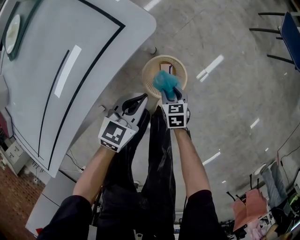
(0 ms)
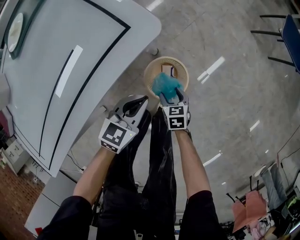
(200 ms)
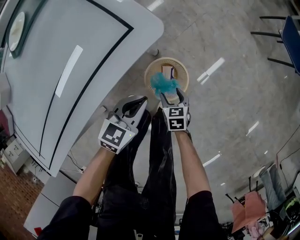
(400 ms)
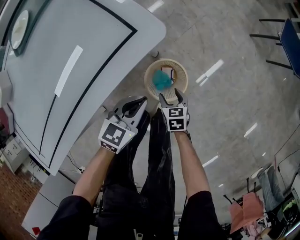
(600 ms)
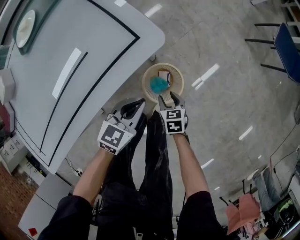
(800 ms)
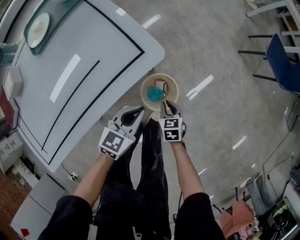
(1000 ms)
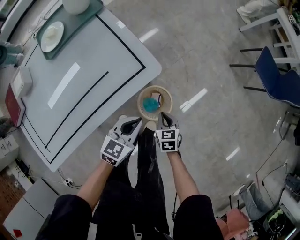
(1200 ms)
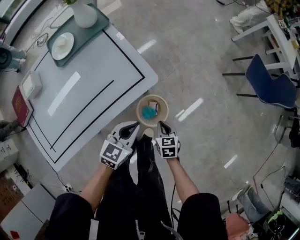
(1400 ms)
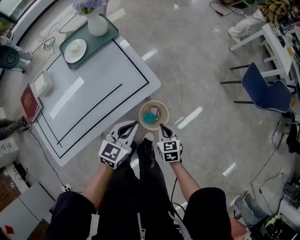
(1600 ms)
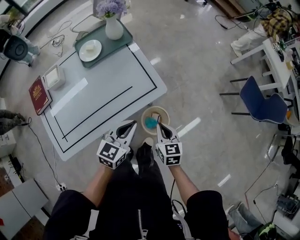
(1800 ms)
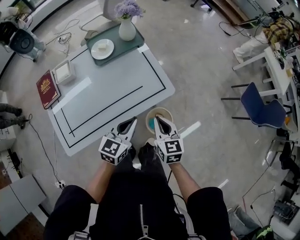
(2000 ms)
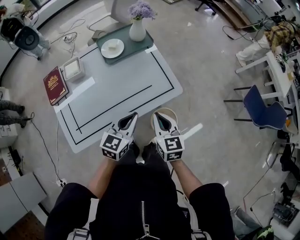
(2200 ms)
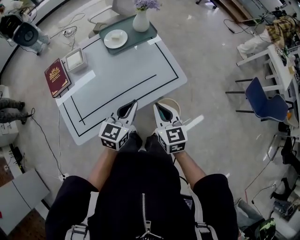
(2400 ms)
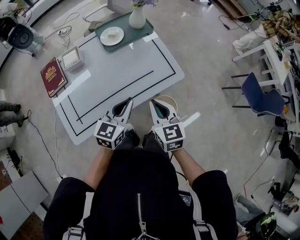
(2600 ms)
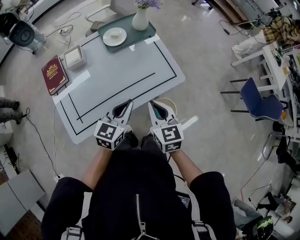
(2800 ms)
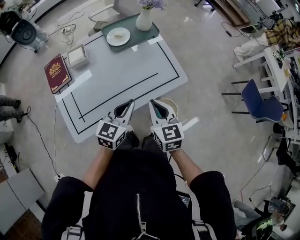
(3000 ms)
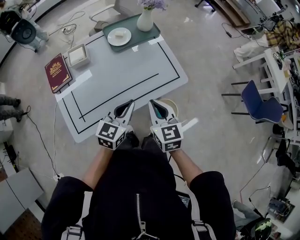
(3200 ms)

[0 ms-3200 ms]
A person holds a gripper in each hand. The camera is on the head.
0 ms to 1600 ms: Both grippers move upward, about 30 cm. The right gripper closes.
1600 ms to 3200 ms: The right gripper travels upward and to the left by about 35 cm, and rotates approximately 30 degrees, while the left gripper heads to the left and upward, covering roughly 20 cm.

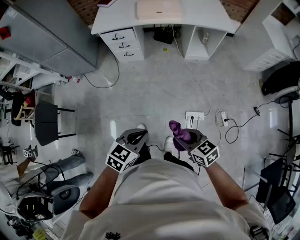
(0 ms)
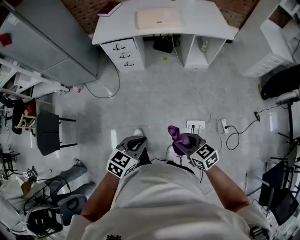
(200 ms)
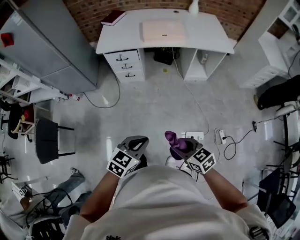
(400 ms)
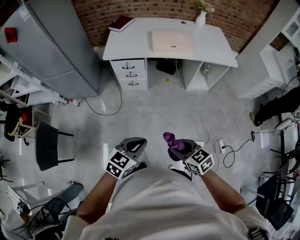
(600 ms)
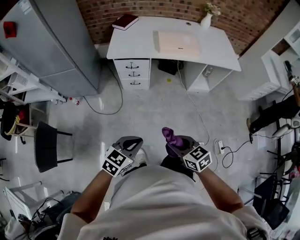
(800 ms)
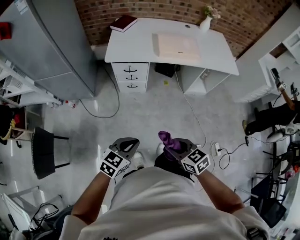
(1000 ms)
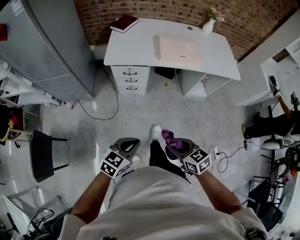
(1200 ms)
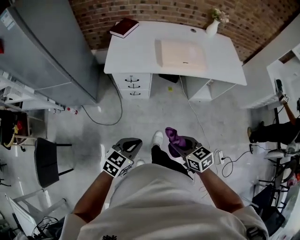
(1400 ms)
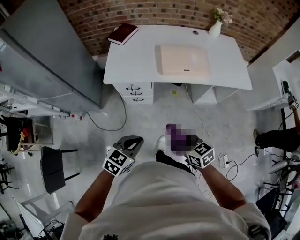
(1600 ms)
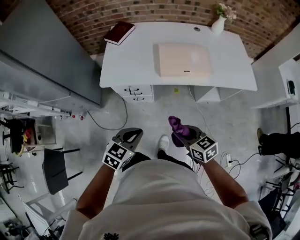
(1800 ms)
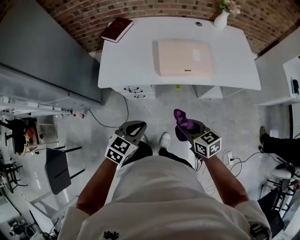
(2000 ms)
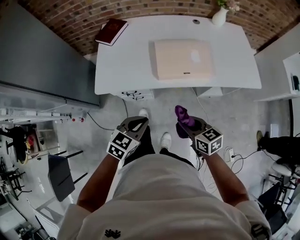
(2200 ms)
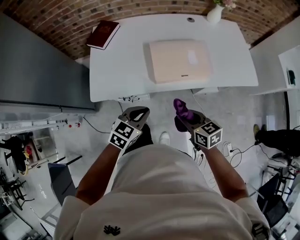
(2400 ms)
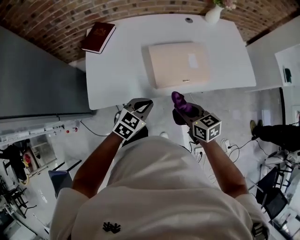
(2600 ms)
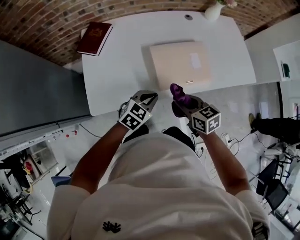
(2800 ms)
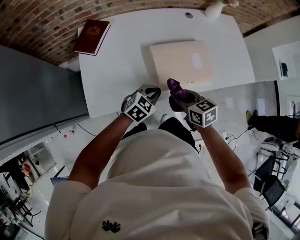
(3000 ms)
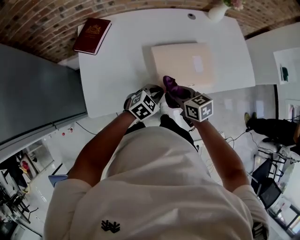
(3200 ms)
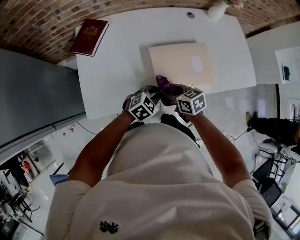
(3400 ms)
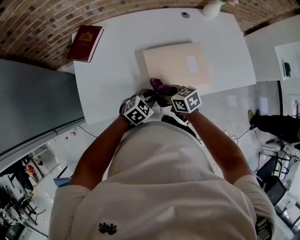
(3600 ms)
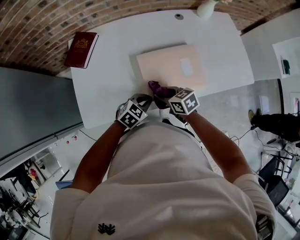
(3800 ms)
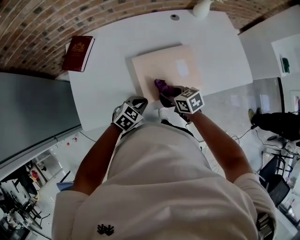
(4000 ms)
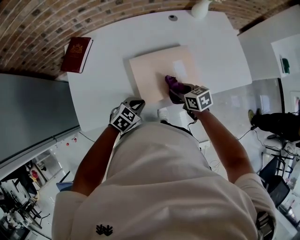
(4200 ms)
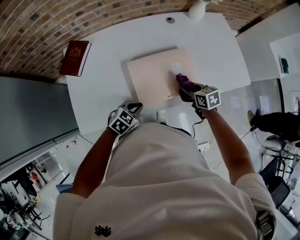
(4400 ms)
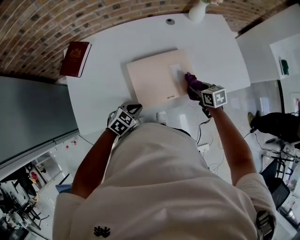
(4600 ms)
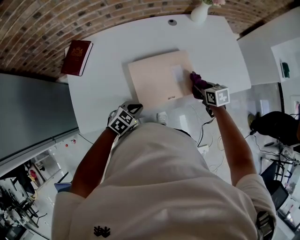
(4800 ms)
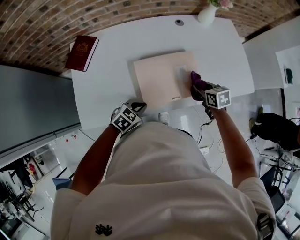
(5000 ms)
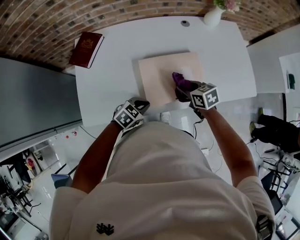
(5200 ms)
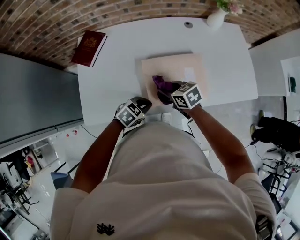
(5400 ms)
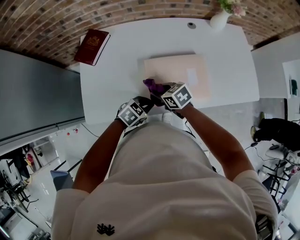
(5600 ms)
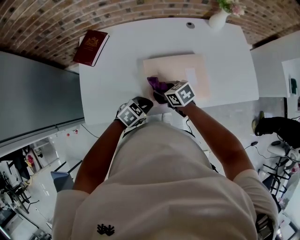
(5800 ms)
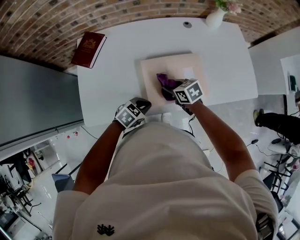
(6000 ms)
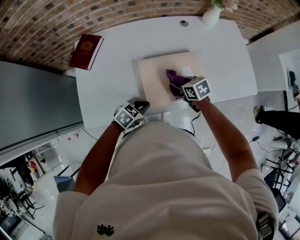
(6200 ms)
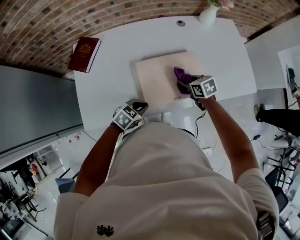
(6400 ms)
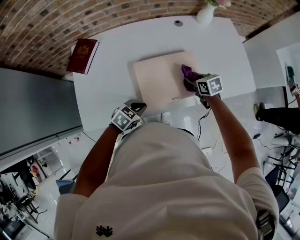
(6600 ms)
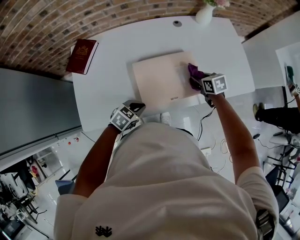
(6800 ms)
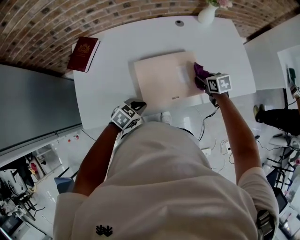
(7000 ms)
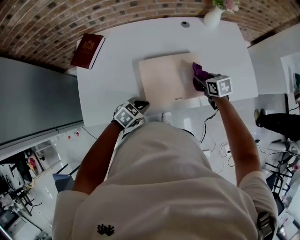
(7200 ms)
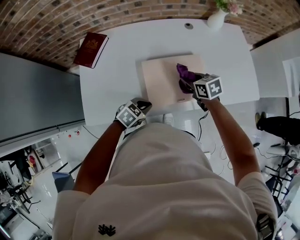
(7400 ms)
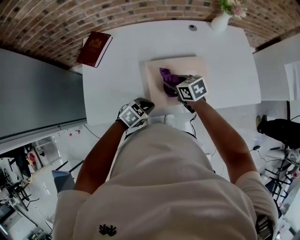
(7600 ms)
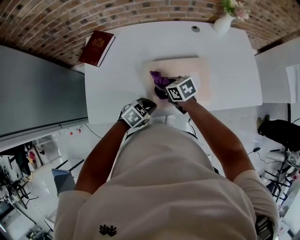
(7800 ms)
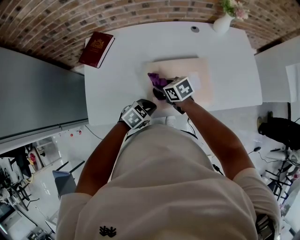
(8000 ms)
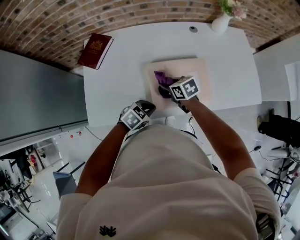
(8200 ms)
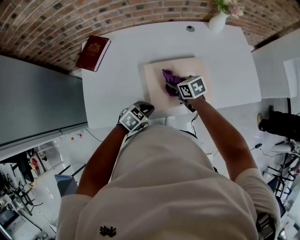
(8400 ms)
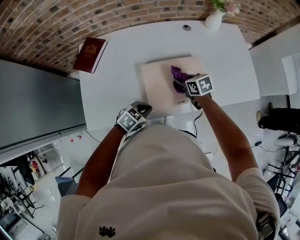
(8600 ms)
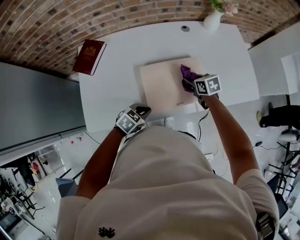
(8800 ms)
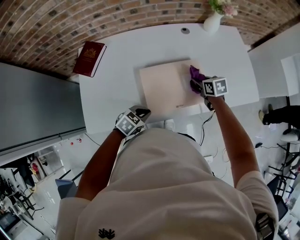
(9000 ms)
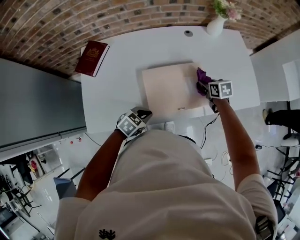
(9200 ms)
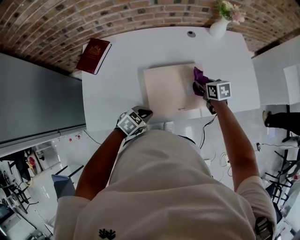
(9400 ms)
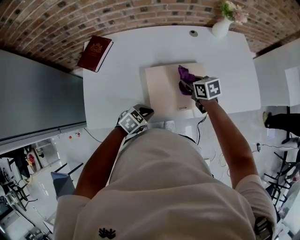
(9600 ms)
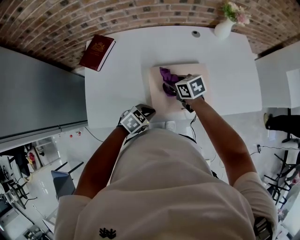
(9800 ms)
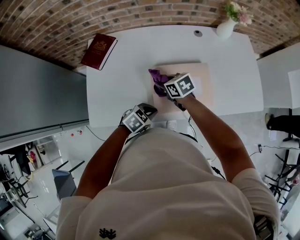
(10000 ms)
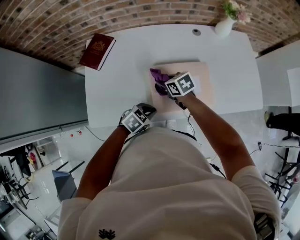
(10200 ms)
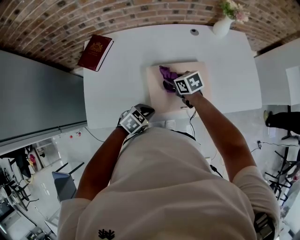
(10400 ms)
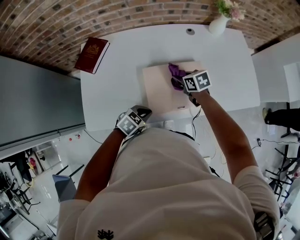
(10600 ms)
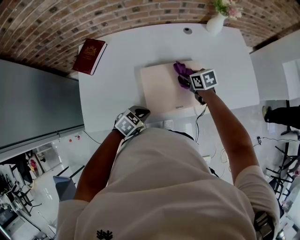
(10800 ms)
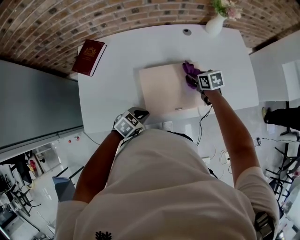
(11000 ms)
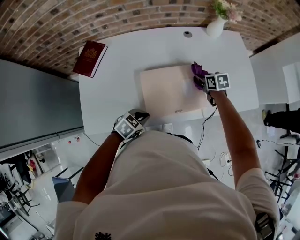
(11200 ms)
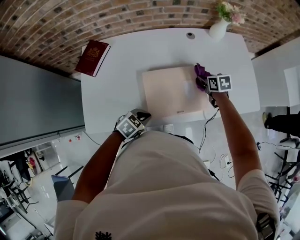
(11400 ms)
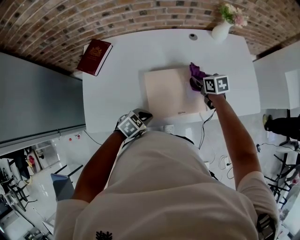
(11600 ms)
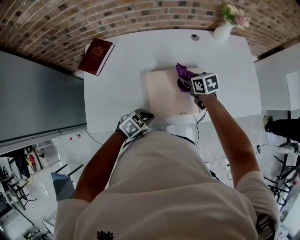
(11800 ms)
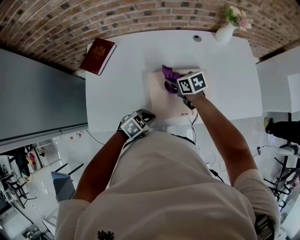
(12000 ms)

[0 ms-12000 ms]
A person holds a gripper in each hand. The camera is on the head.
0 ms to 1600 ms: The two grippers travel together, forward and to the left, roughly 50 cm.
1600 ms to 3000 ms: The two grippers travel together, forward, some 50 cm. The left gripper changes its angle by approximately 20 degrees.
3000 ms to 4400 ms: The right gripper is displaced to the right and forward by some 25 cm, while the left gripper ends up roughly 5 cm from where it was.
4400 ms to 6000 ms: The right gripper ends up about 15 cm from where it was.
7600 ms to 9000 ms: The right gripper shifts by about 20 cm.
9000 ms to 10400 ms: The right gripper shifts by roughly 20 cm.

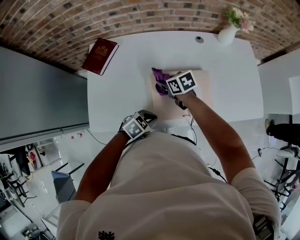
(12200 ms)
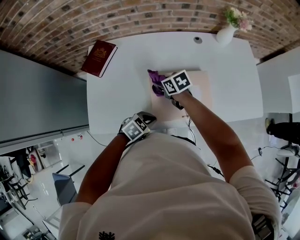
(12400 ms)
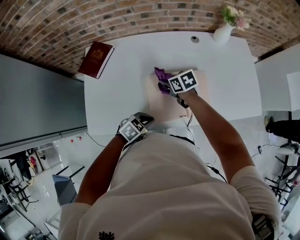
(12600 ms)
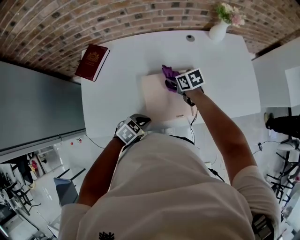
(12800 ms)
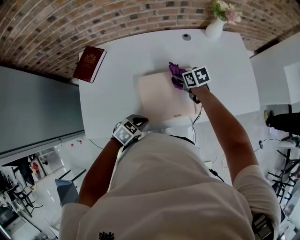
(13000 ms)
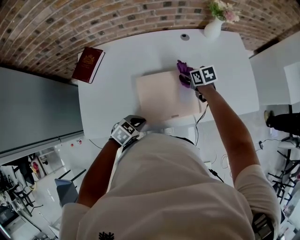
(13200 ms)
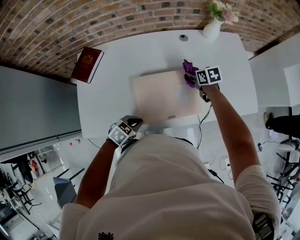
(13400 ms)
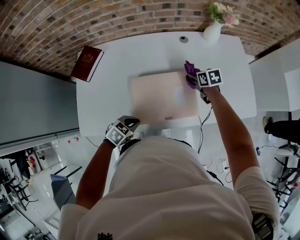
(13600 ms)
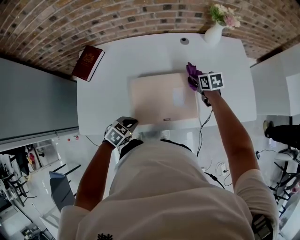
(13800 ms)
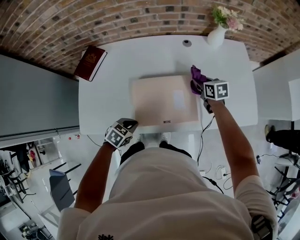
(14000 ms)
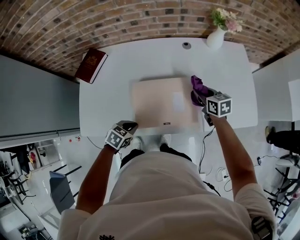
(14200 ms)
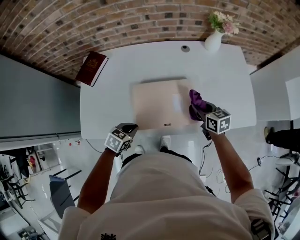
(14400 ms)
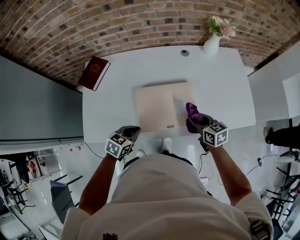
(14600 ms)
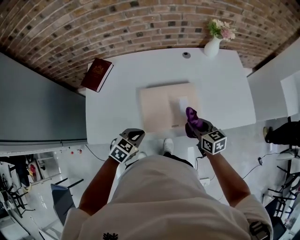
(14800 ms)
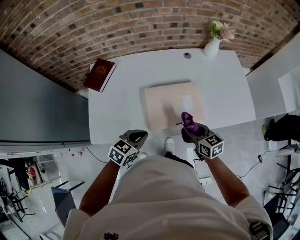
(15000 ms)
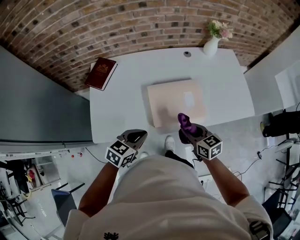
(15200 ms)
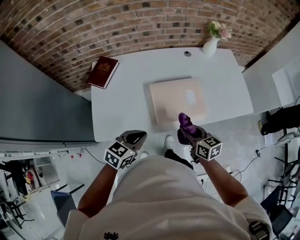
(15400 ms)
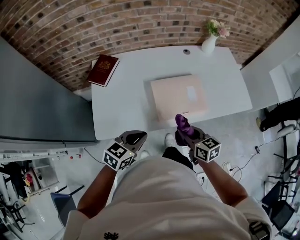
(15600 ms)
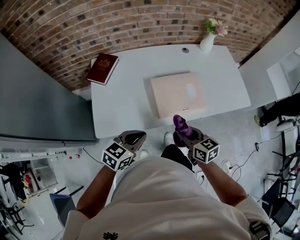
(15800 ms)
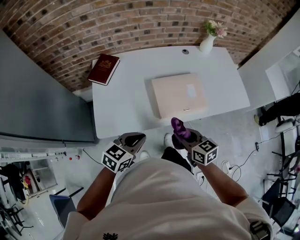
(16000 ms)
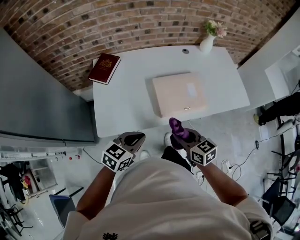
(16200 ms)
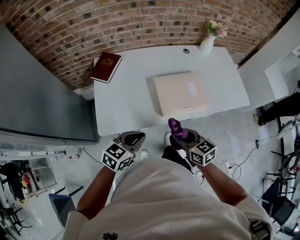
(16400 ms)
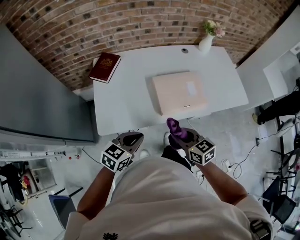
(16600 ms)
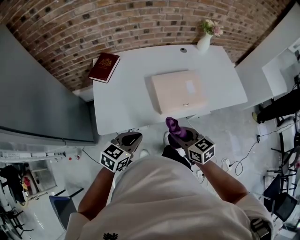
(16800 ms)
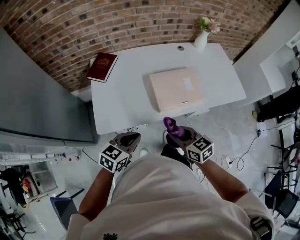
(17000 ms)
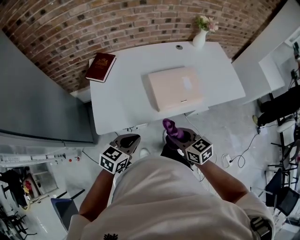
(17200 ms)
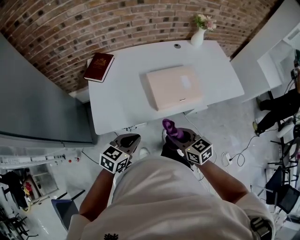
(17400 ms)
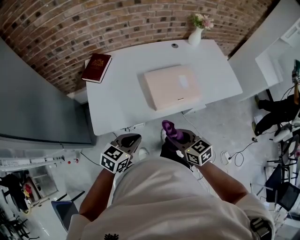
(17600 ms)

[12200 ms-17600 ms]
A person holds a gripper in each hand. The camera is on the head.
12200 ms to 13600 ms: The right gripper moves approximately 30 cm.
13600 ms to 15000 ms: The left gripper is displaced upward by roughly 10 cm. The right gripper shifts some 30 cm backward, and rotates approximately 20 degrees.
15000 ms to 16200 ms: The left gripper is displaced backward, to the left and upward by roughly 15 cm; the right gripper goes approximately 20 cm backward and to the left.
16200 ms to 17600 ms: The left gripper ends up roughly 5 cm from where it was. The right gripper heads backward, covering approximately 5 cm.

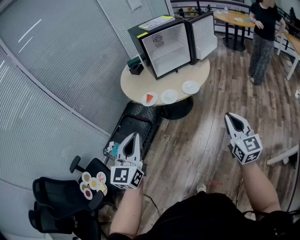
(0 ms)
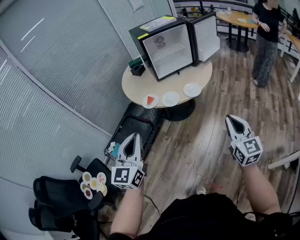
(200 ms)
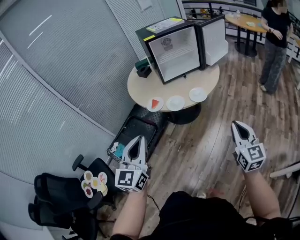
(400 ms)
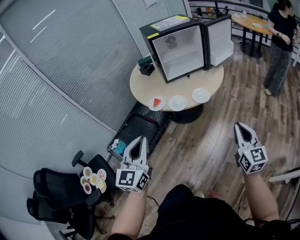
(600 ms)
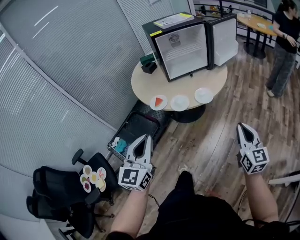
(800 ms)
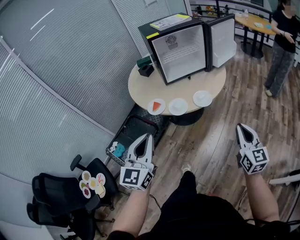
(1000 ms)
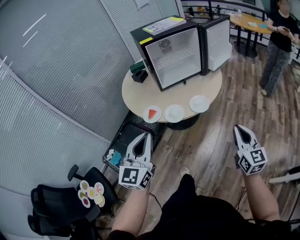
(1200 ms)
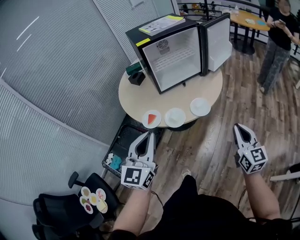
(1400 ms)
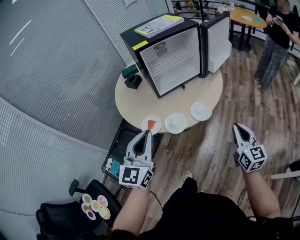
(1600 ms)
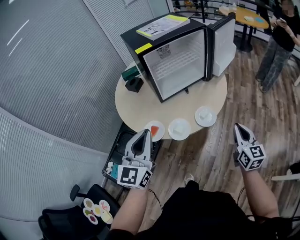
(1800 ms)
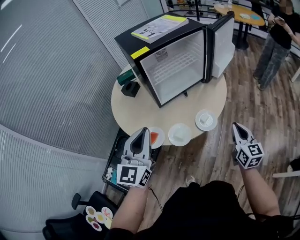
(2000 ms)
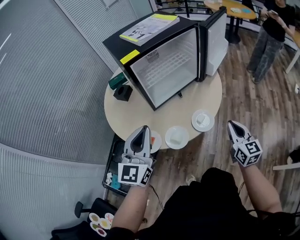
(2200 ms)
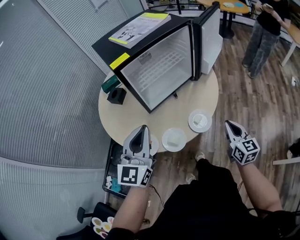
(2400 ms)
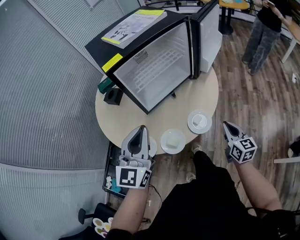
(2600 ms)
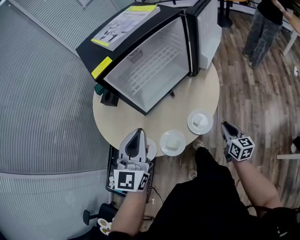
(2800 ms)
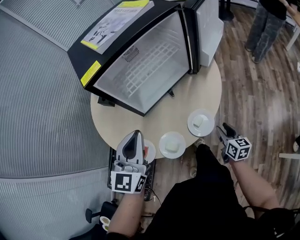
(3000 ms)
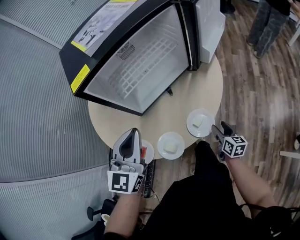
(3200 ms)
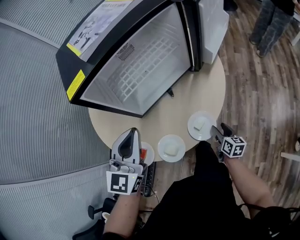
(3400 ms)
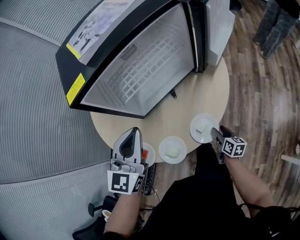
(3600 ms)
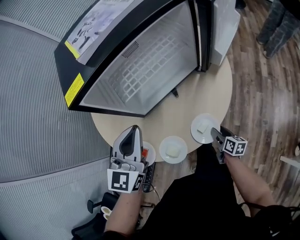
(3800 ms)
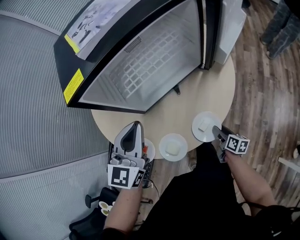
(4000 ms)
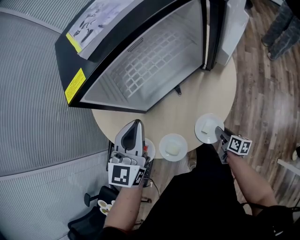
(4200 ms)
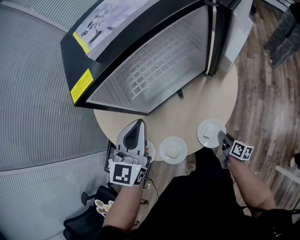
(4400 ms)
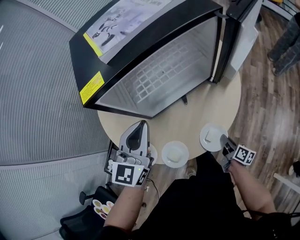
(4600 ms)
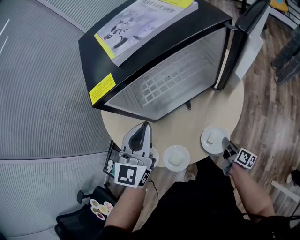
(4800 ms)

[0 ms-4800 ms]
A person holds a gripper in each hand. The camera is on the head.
0 ms to 1600 ms: Both grippers move forward, some 30 cm.
1600 ms to 3200 ms: The left gripper goes roughly 30 cm forward. Meanwhile the right gripper goes some 35 cm downward and forward, changes its angle by roughly 40 degrees, and opens up.
3200 ms to 4800 ms: The grippers both shift forward by some 5 cm. The right gripper turns by approximately 30 degrees, and closes its fingers.
